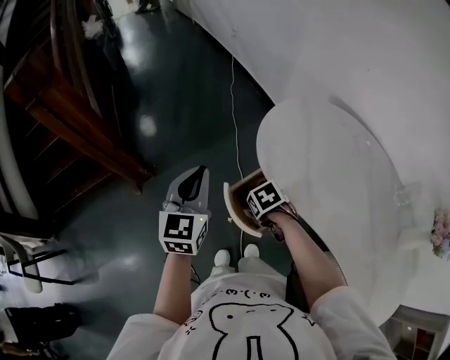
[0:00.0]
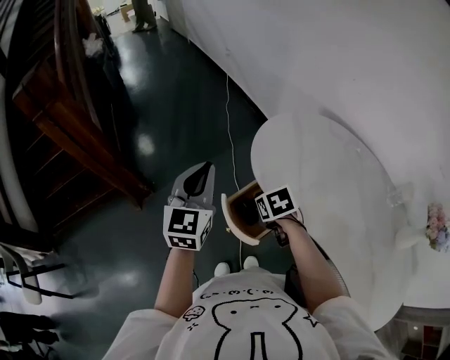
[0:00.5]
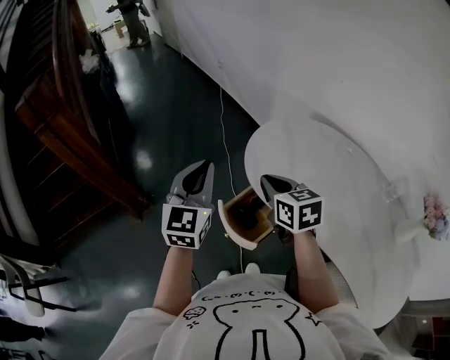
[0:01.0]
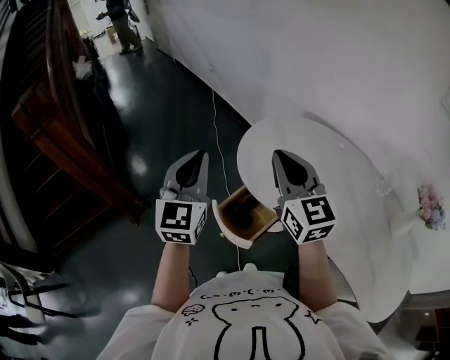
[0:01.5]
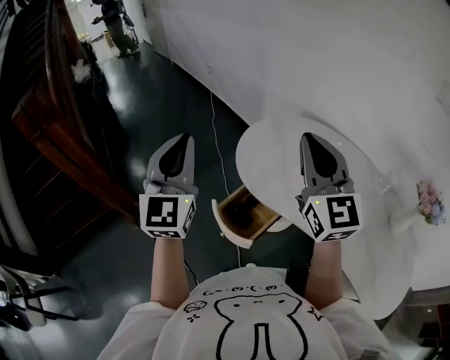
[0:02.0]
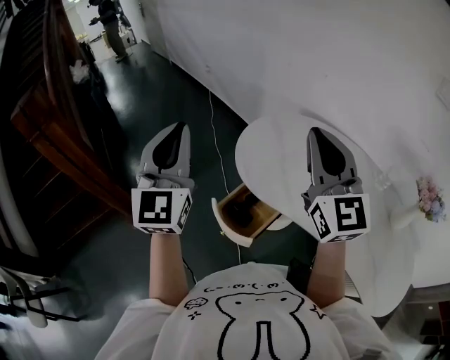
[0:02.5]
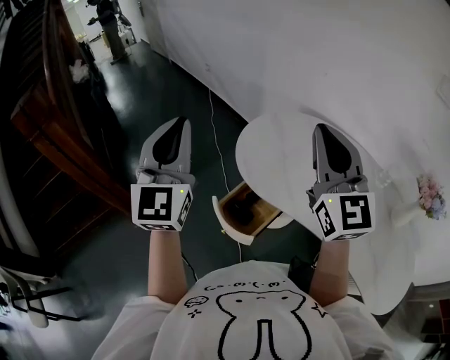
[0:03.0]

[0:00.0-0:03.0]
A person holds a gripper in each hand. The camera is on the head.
0:00.0 to 0:01.5: The left gripper travels upward by about 10 cm. Meanwhile the right gripper heads upward, covering about 35 cm, points its fingers approximately 70 degrees further upward, and closes its fingers.
0:01.5 to 0:03.0: The left gripper shifts approximately 10 cm upward; the right gripper heads upward and to the right, covering about 10 cm, and turns by about 20 degrees.

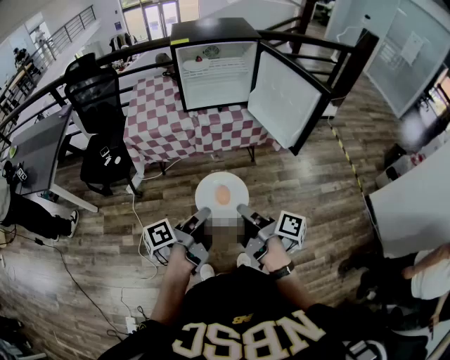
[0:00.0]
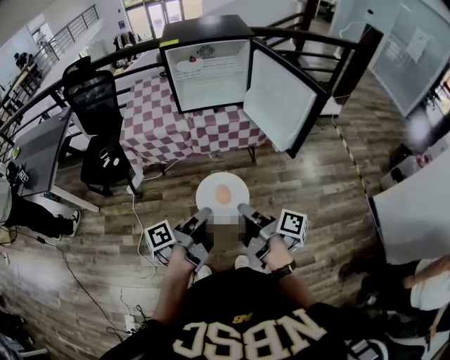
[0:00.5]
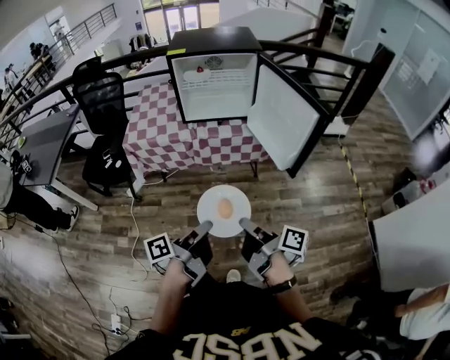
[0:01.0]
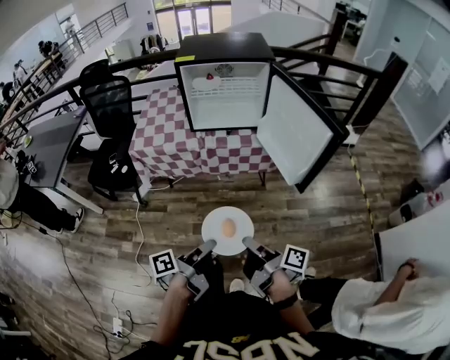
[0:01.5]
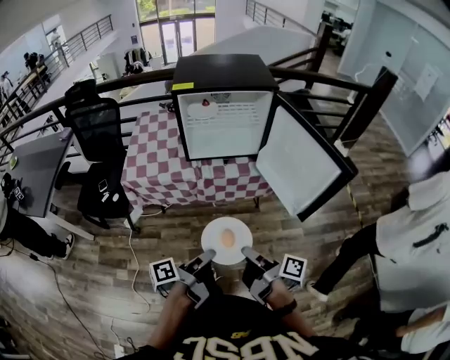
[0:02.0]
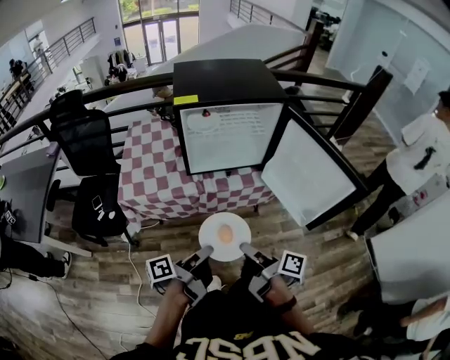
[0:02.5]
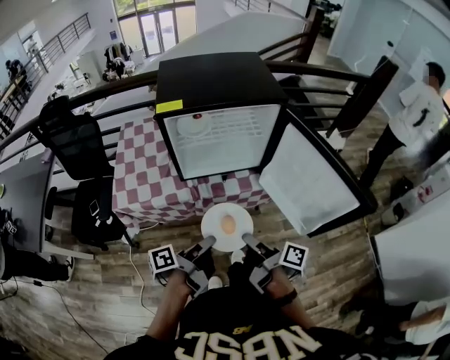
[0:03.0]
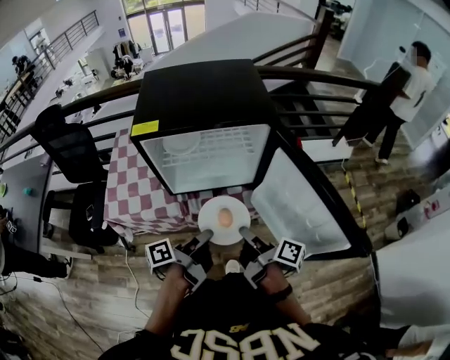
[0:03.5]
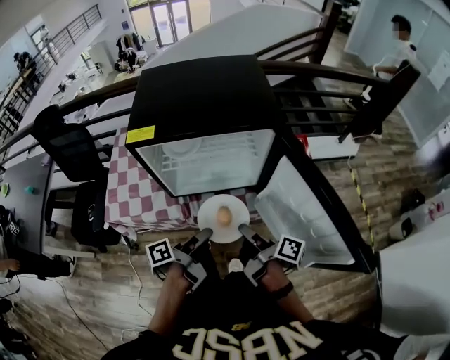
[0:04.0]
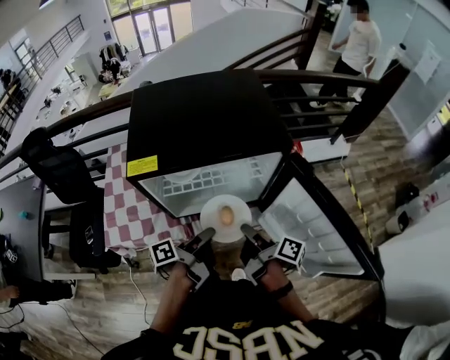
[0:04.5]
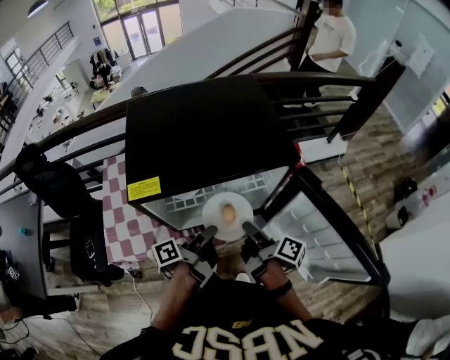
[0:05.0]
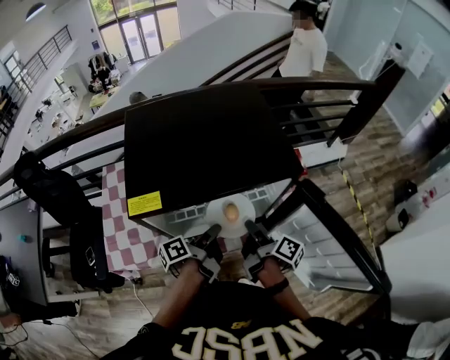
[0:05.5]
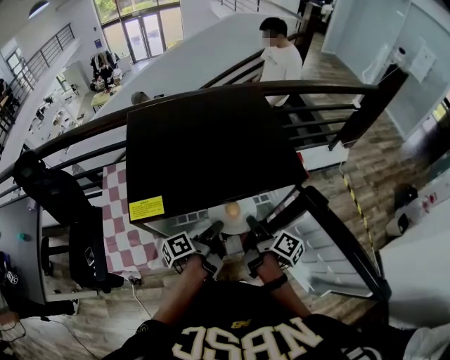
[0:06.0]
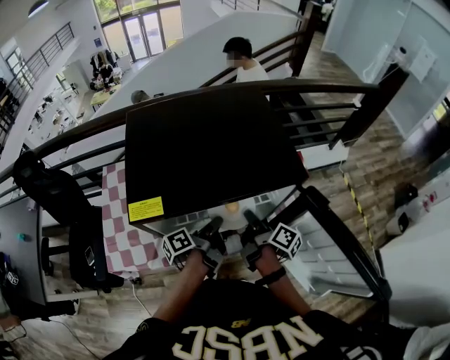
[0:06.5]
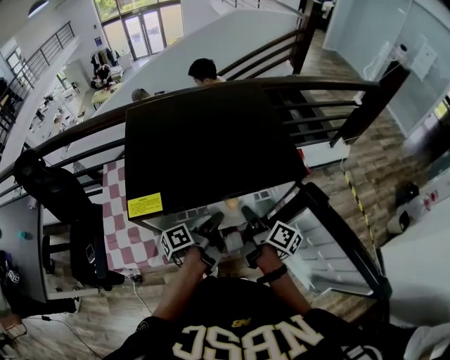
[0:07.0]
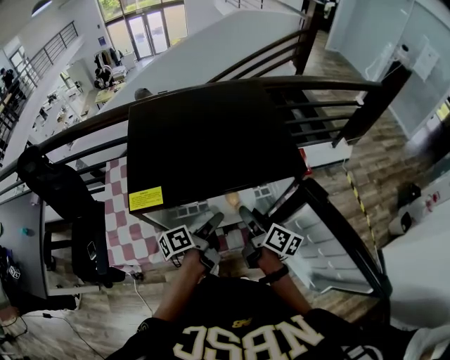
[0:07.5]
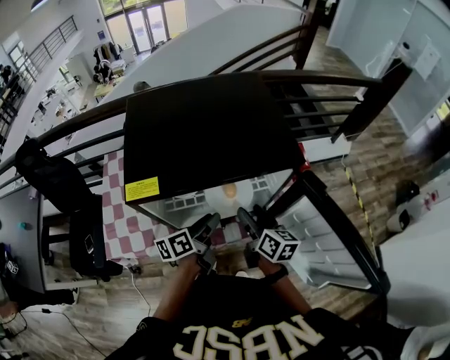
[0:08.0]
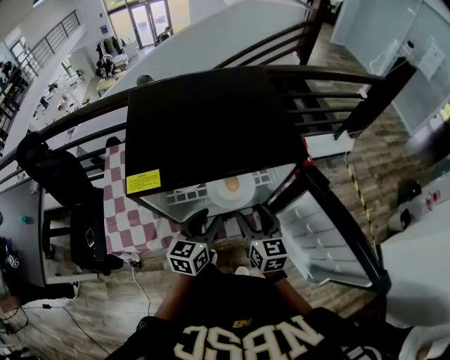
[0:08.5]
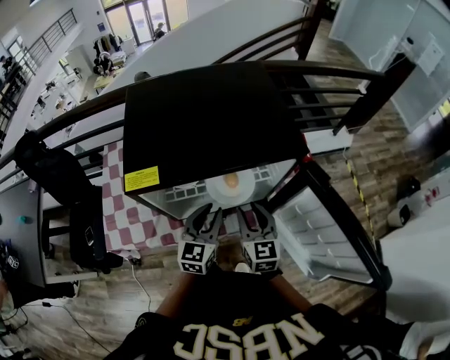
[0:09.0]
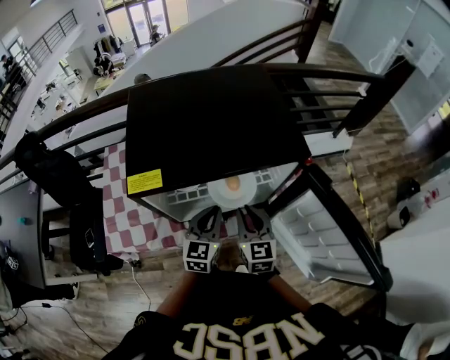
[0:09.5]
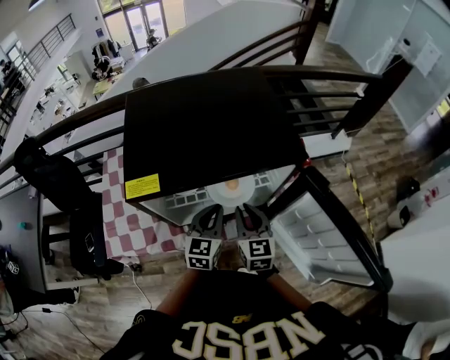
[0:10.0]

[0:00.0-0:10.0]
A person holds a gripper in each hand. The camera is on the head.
0:00.0 to 0:02.0: The grippers both shift forward by about 15 cm.
0:02.0 to 0:04.0: Both grippers move forward, approximately 35 cm.
0:04.0 to 0:06.0: The two grippers go some 20 cm forward. The right gripper rotates about 20 degrees.
0:06.0 to 0:08.0: The left gripper swivels some 30 degrees, and opens. The right gripper rolls counterclockwise, seen from behind, by some 40 degrees, and opens its fingers.
0:08.0 to 0:10.0: The left gripper twists some 50 degrees clockwise, seen from behind, and closes its fingers. The right gripper swivels some 40 degrees, and closes up.

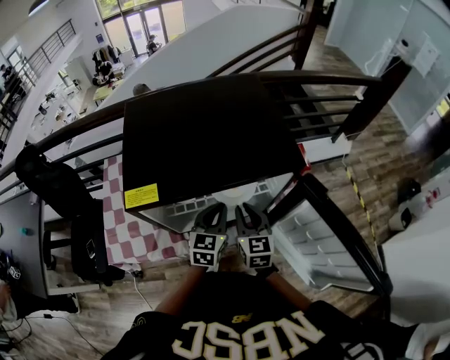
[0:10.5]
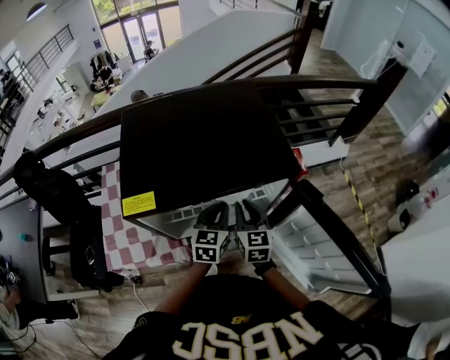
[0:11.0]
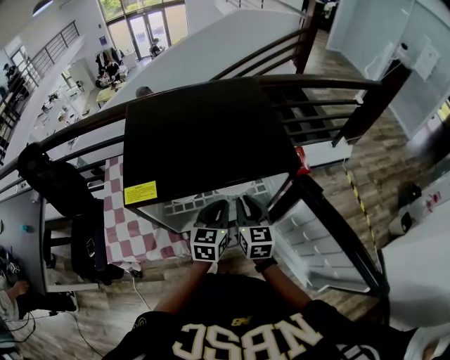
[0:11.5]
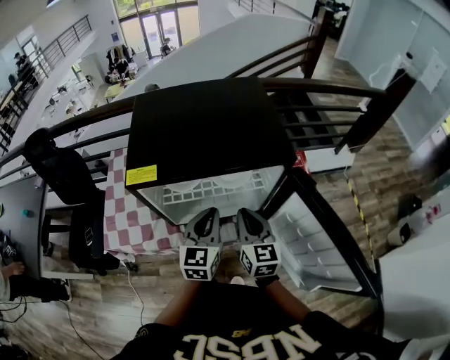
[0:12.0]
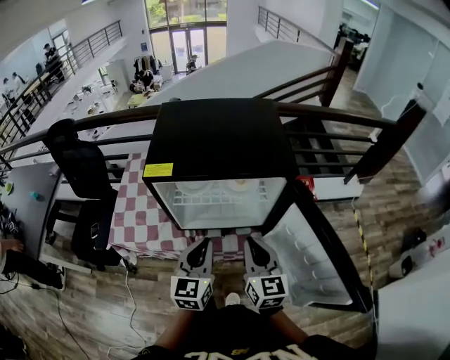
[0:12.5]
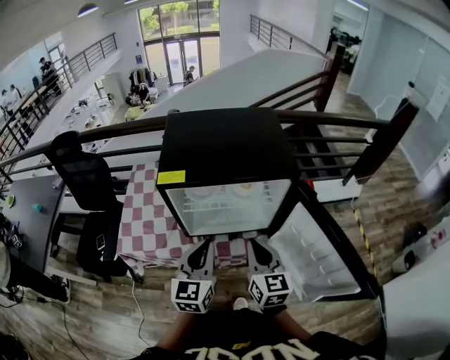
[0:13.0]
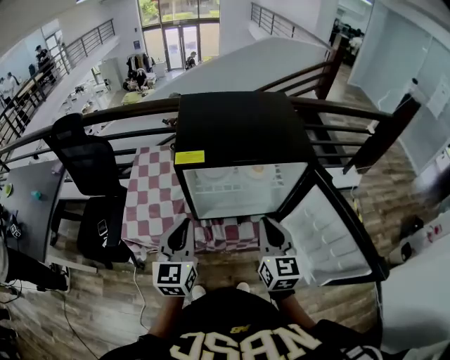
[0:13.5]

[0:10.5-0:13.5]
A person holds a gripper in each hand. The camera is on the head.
0:10.5 to 0:12.0: The right gripper moves some 5 cm. Meanwhile the left gripper heads upward and backward, covering approximately 10 cm.
0:12.0 to 0:13.5: The right gripper heads backward and upward, covering about 10 cm; the left gripper is displaced to the left, backward and upward by some 20 cm.

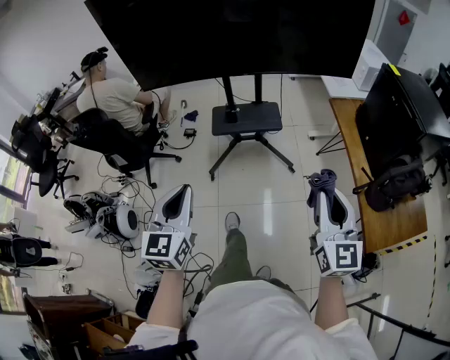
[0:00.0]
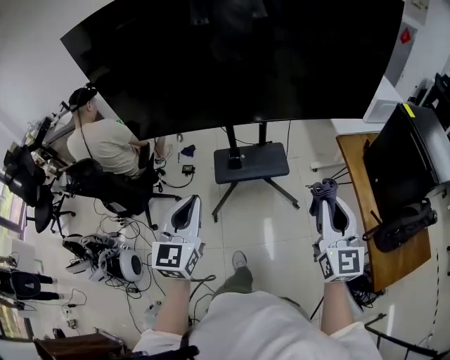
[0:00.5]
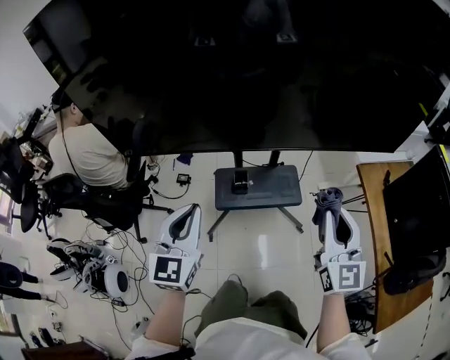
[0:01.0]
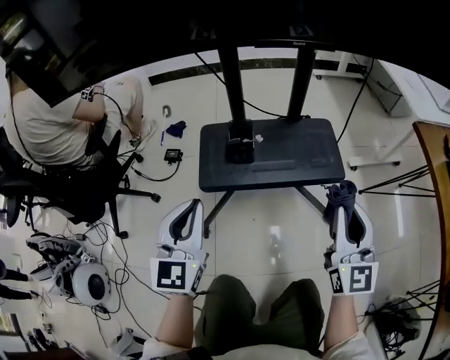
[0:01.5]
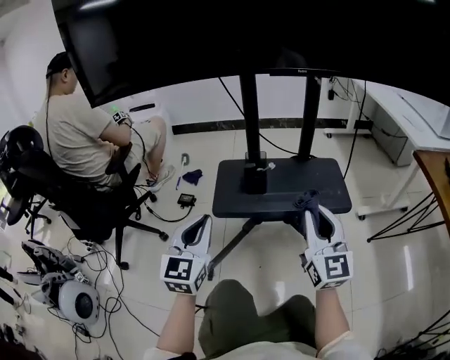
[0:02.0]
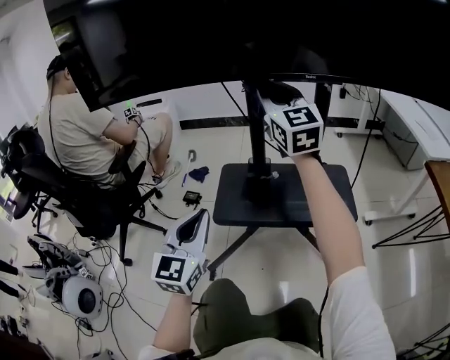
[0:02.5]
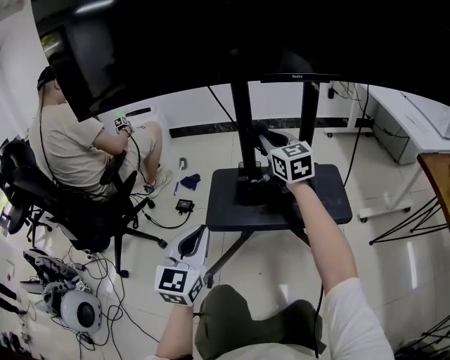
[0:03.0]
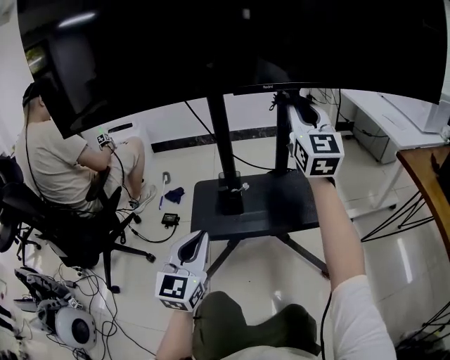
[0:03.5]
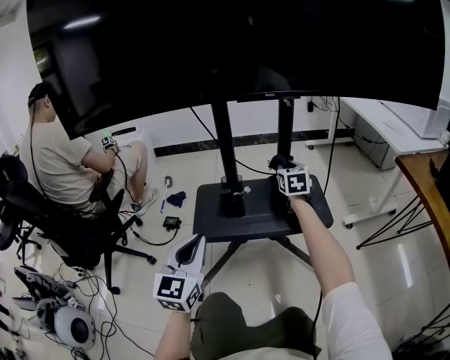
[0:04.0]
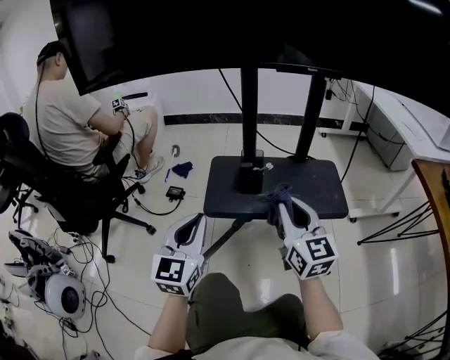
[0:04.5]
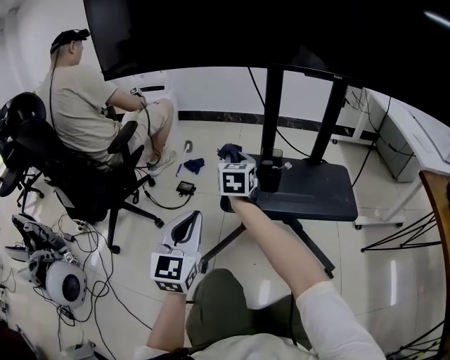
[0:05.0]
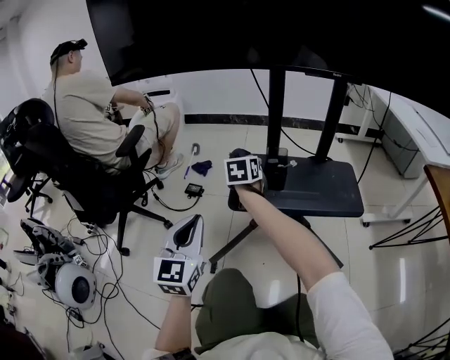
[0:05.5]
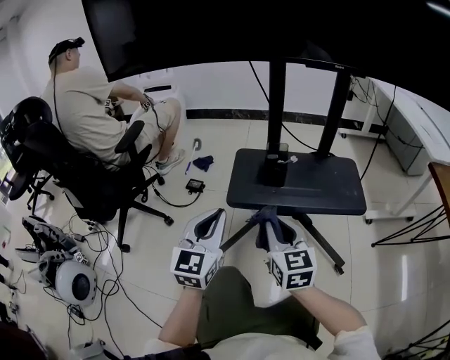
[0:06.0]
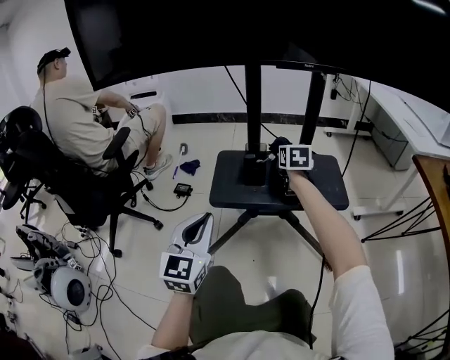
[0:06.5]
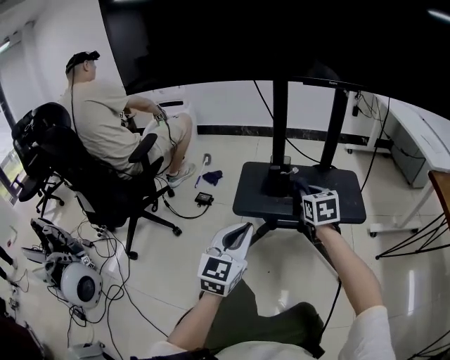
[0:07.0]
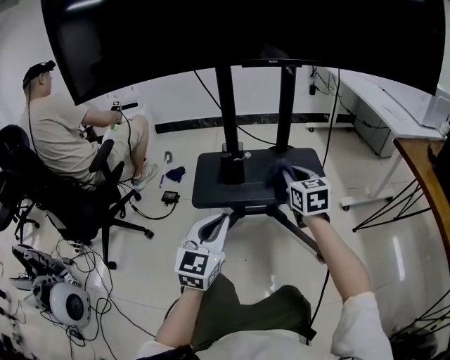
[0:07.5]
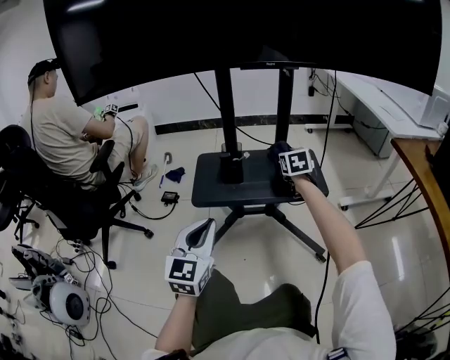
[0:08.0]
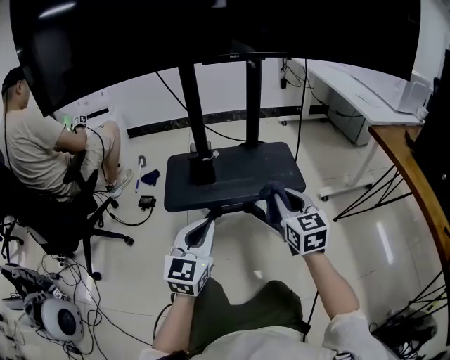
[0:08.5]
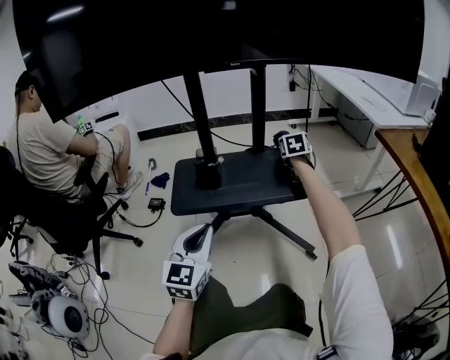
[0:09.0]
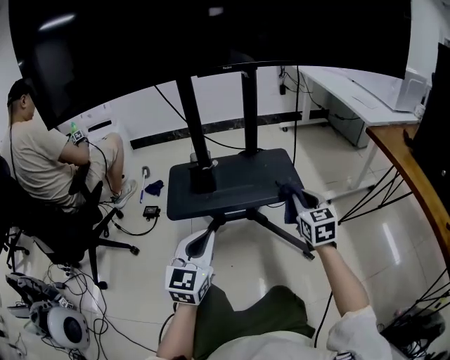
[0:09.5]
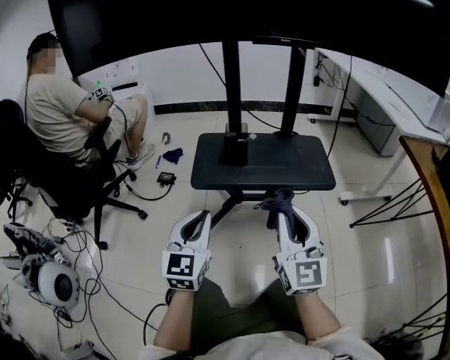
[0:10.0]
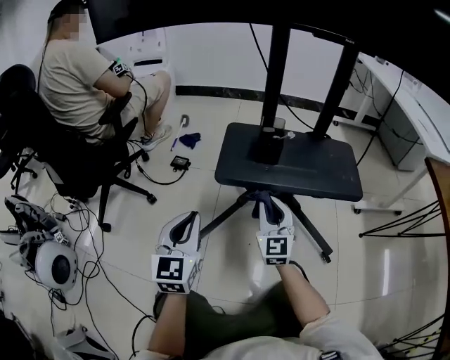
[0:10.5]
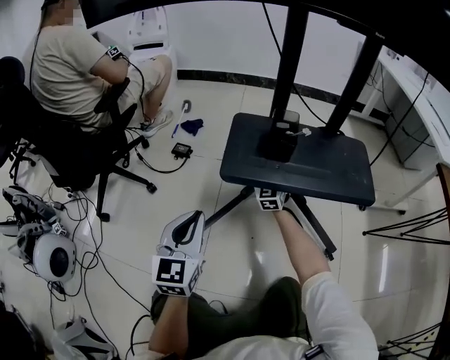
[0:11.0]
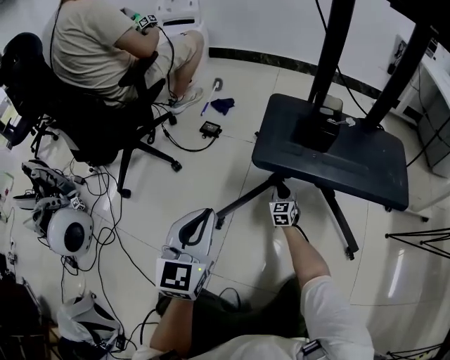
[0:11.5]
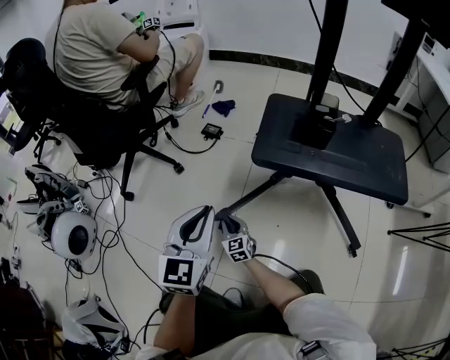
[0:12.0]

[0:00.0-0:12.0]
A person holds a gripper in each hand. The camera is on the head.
0:00.0 to 0:02.0: The pair of grippers is taken forward and to the left, some 70 cm. The grippers both shift downward by roughly 70 cm.
0:02.0 to 0:04.0: The right gripper goes forward and backward, roughly 35 cm each way, reversing 2 times, and angles its fingers downward, by roughly 40 degrees.
0:04.0 to 0:06.0: The right gripper moves forward and backward over some 30 cm, changing direction 2 times, and rotates about 20 degrees.
0:06.0 to 0:08.0: The right gripper moves forward and backward over some 25 cm, changing direction 2 times, and turns by roughly 30 degrees. Meanwhile the left gripper moves to the right, about 5 cm.
0:08.0 to 0:10.0: The left gripper moves approximately 5 cm to the right and comes back. The right gripper goes forward and backward, roughly 40 cm each way, reversing 2 times, and points its fingers some 40 degrees further upward.
0:10.0 to 0:12.0: The right gripper is displaced downward and to the left by approximately 70 cm, and angles its fingers downward, by approximately 30 degrees; the left gripper heads to the left and downward, covering about 15 cm.
